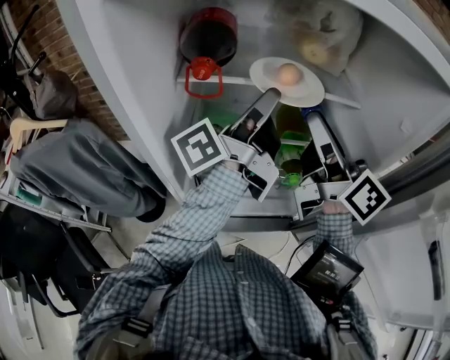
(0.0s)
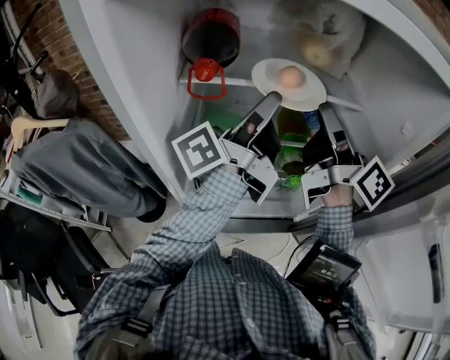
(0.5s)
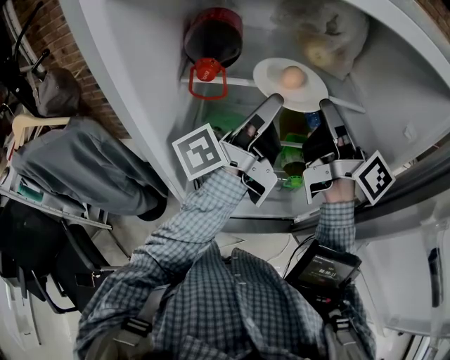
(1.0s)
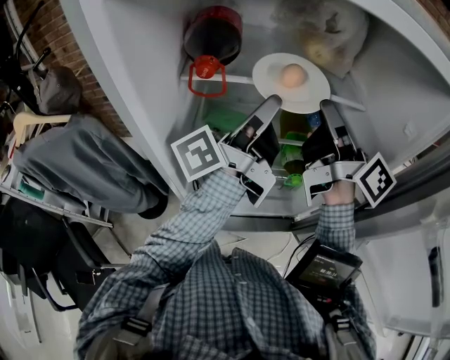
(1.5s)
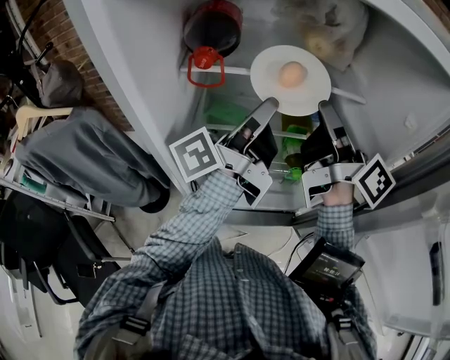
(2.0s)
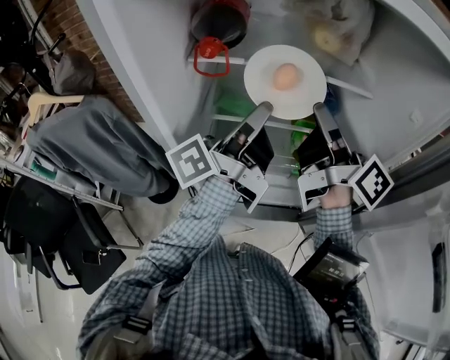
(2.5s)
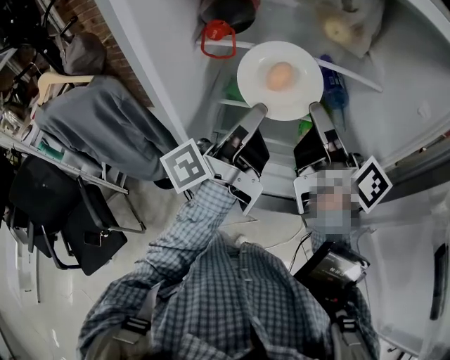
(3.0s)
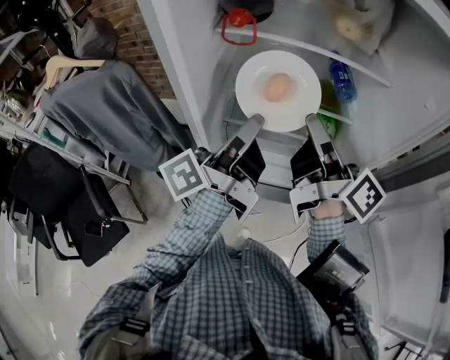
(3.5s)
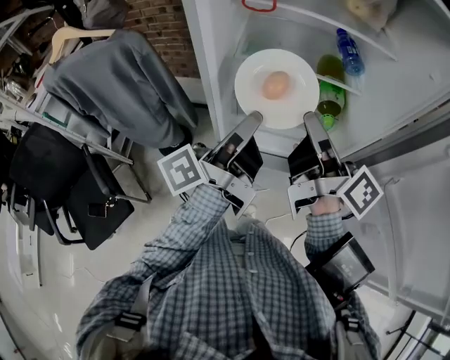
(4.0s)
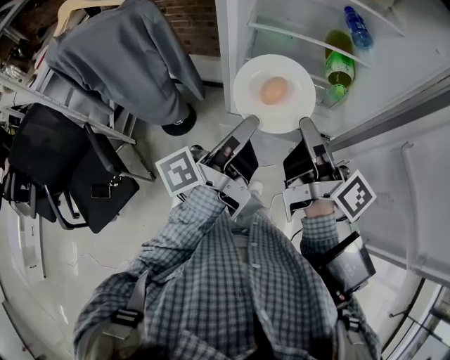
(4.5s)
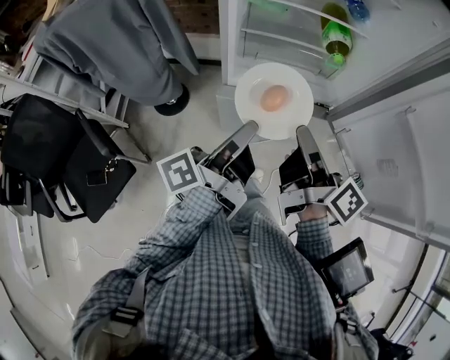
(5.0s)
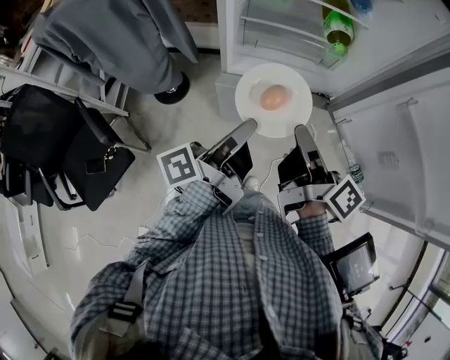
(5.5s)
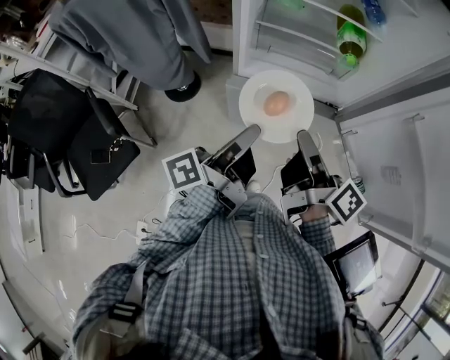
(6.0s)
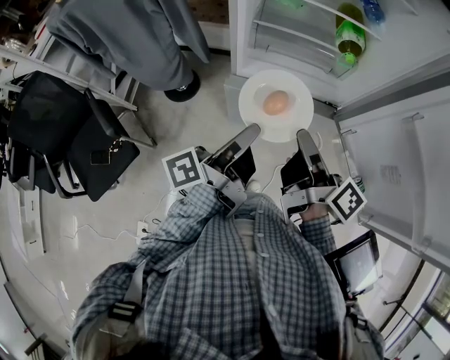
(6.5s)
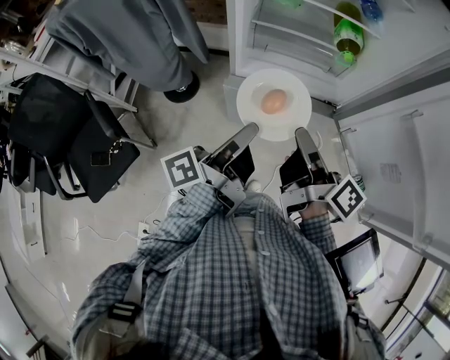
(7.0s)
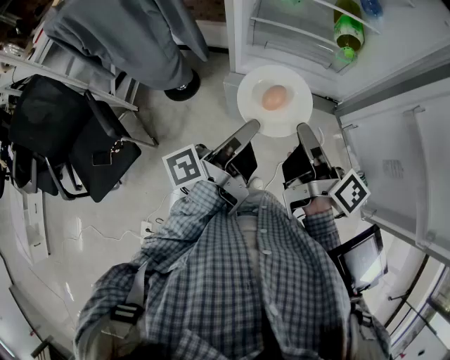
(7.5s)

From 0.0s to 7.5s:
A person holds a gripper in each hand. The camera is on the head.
From 0.0s to 2.0s: The right gripper turns by approximately 20 degrees.
From 2.0s to 4.0s: The two grippers go some 20 cm backward, downward and to the left.
From 4.0s to 5.5s: Both grippers travel together backward and downward, some 20 cm.
From 5.5s to 7.5s: The grippers make only small movements.

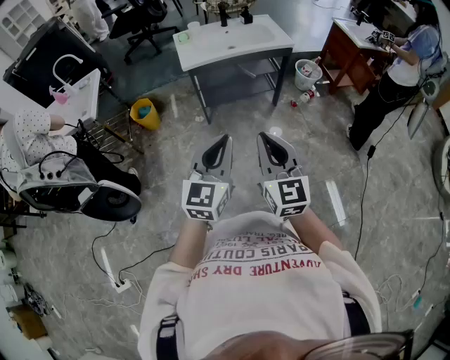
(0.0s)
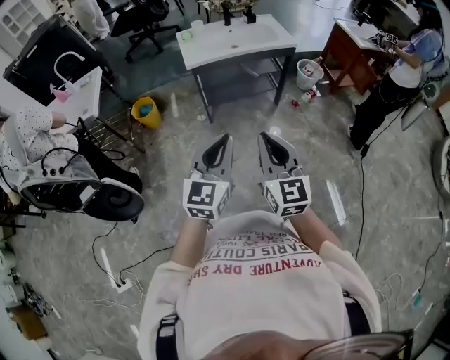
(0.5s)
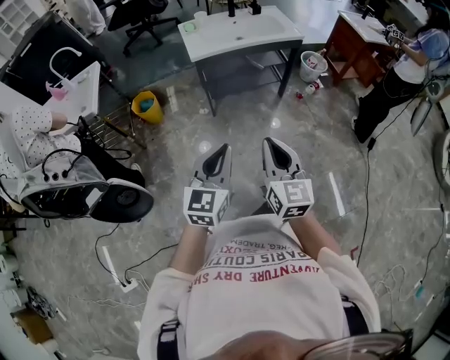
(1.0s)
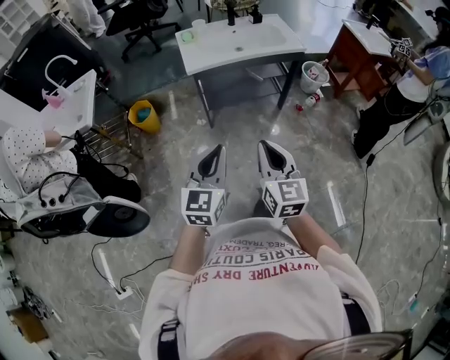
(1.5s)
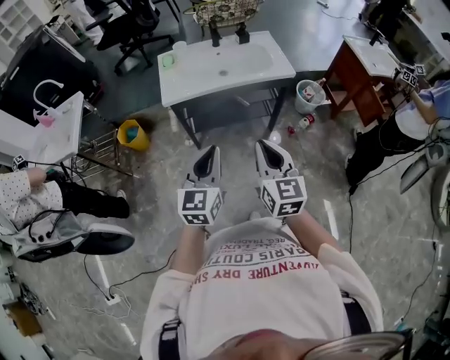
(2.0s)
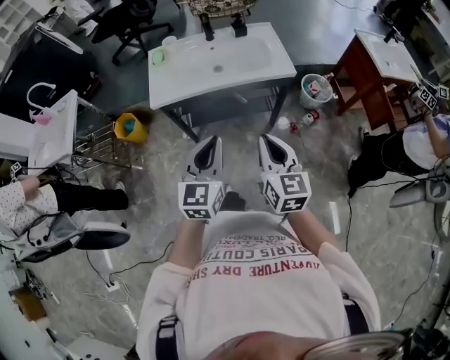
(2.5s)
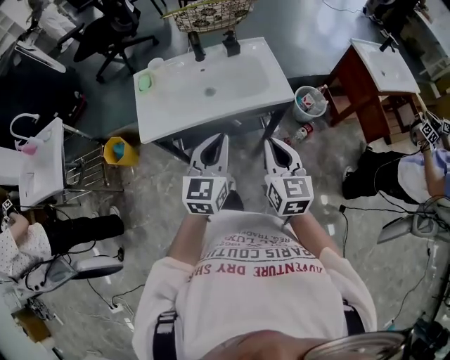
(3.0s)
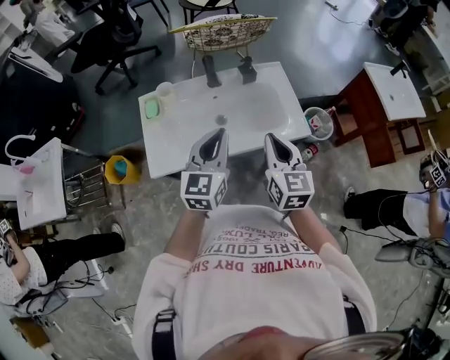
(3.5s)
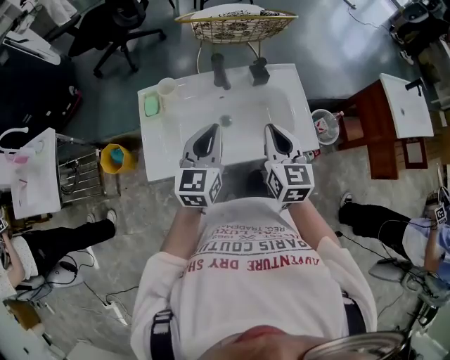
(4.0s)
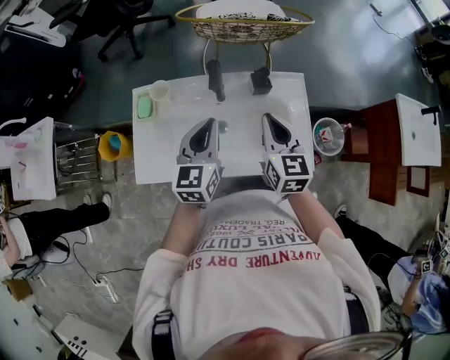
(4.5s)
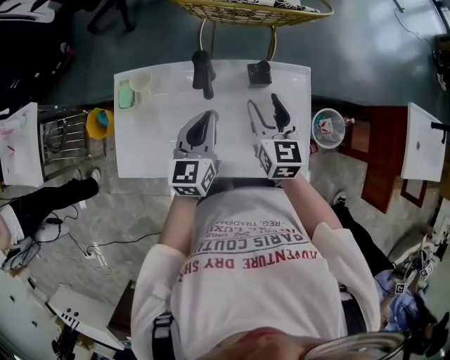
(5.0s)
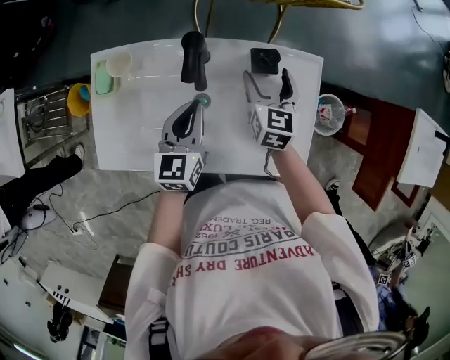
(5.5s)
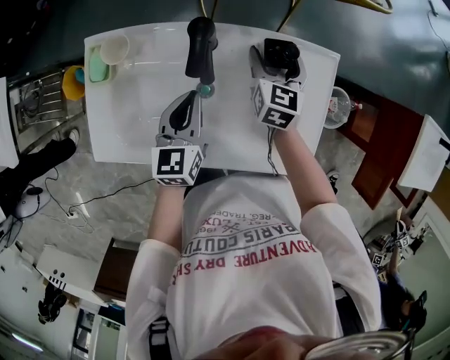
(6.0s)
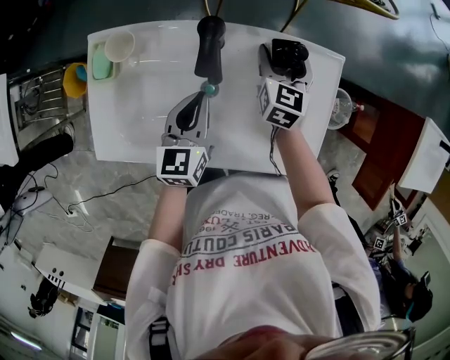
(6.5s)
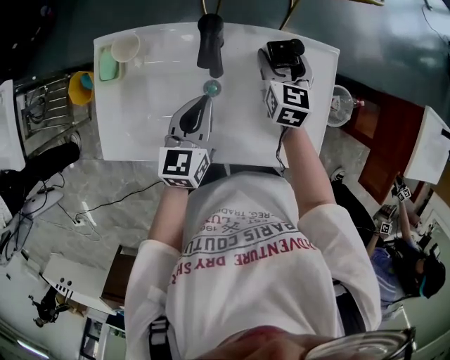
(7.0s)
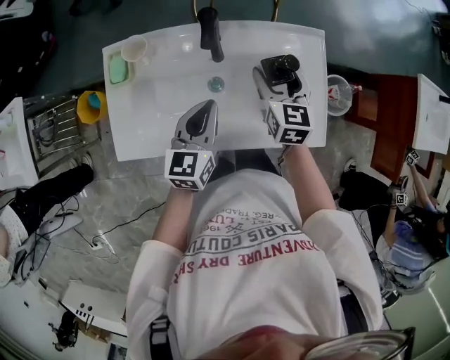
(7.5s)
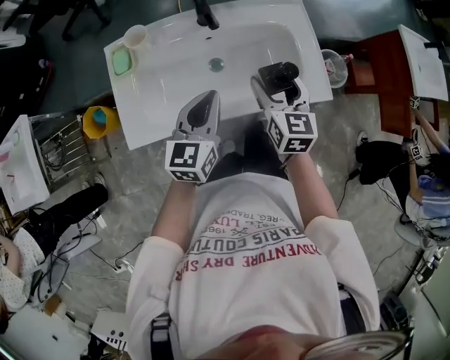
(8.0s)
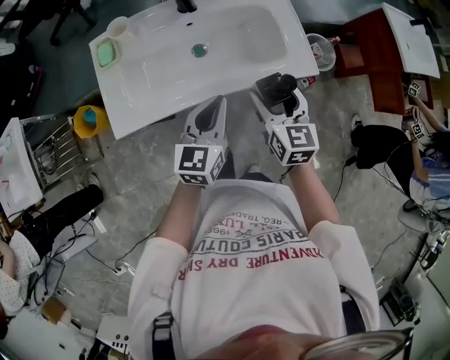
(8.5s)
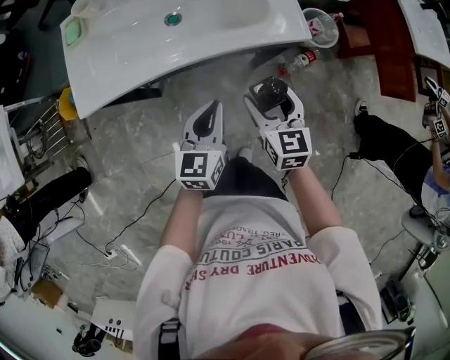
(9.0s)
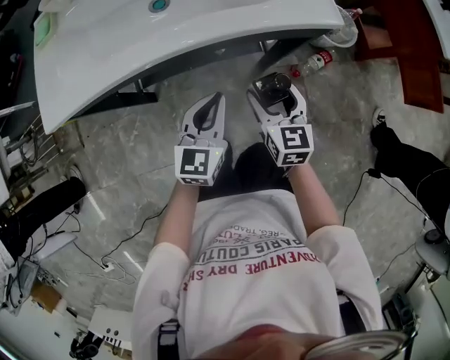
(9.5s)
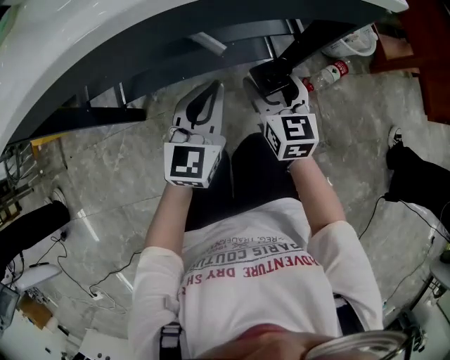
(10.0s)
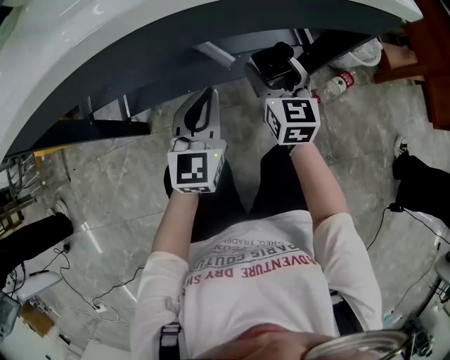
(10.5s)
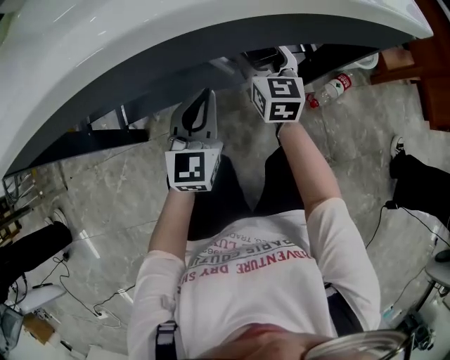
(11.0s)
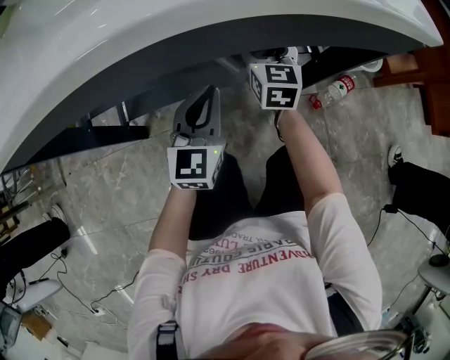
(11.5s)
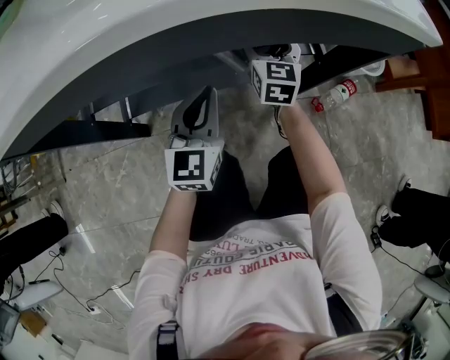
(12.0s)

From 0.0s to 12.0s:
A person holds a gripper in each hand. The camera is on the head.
From 0.0s to 2.0s: Both grippers travel together forward, approximately 25 cm.
From 2.0s to 4.0s: Both grippers are carried forward, about 50 cm.
From 4.0s to 6.0s: The left gripper shifts about 25 cm downward and forward, and rotates some 20 degrees; the right gripper is displaced forward and downward by about 40 cm, and opens up.
From 6.0s to 8.0s: The left gripper moves backward and upward, roughly 20 cm, and rotates approximately 30 degrees. Meanwhile the right gripper heads backward and upward, covering about 30 cm.
From 8.0s to 10.0s: The grippers both shift downward by about 40 cm.
From 10.0s to 12.0s: The left gripper shifts some 5 cm to the left; the right gripper heads forward, covering some 15 cm.

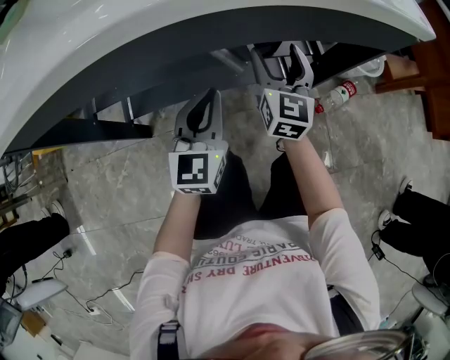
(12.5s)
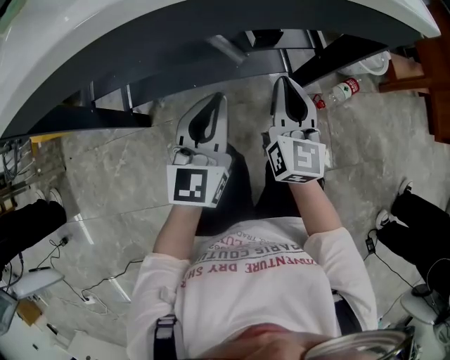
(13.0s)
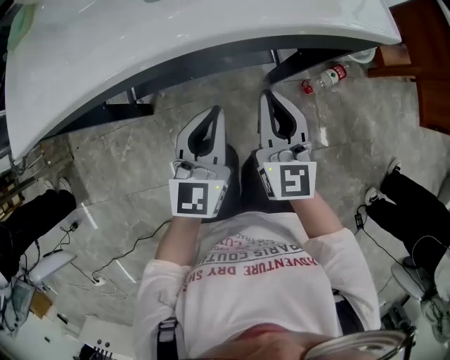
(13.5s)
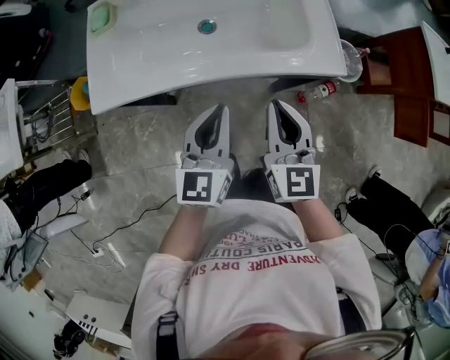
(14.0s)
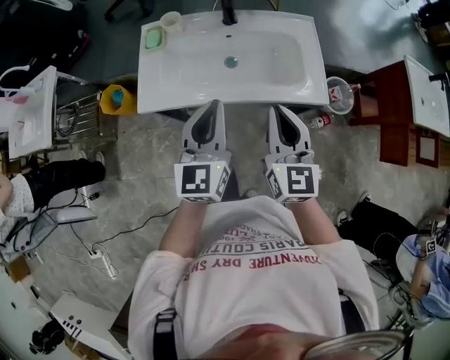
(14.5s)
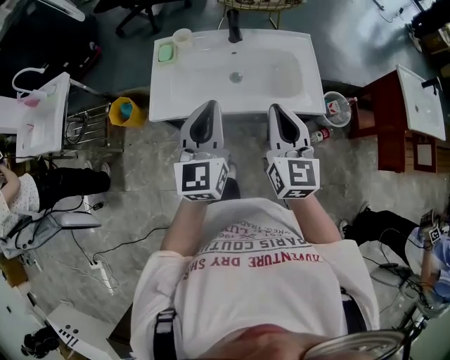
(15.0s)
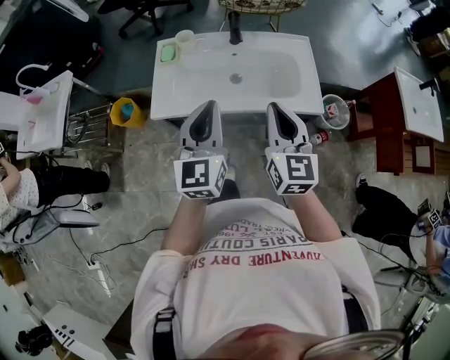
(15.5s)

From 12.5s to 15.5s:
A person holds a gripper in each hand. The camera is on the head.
From 12.5s to 14.0s: The right gripper travels upward and backward by approximately 35 cm, and closes up. Meanwhile the left gripper travels upward by roughly 35 cm.
From 14.0s to 15.5s: The grippers both shift upward by roughly 20 cm.

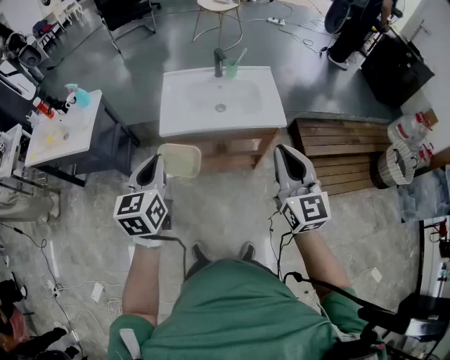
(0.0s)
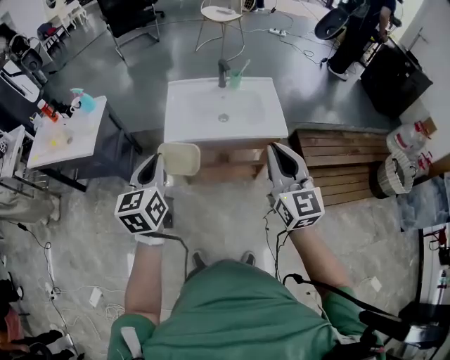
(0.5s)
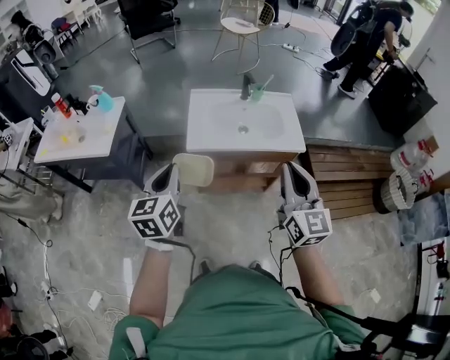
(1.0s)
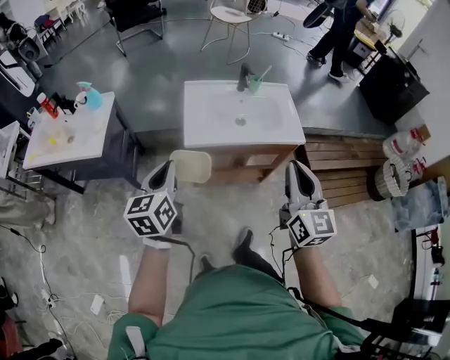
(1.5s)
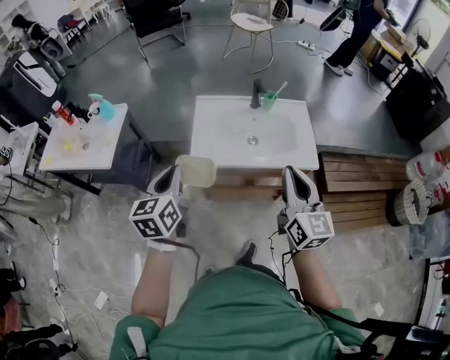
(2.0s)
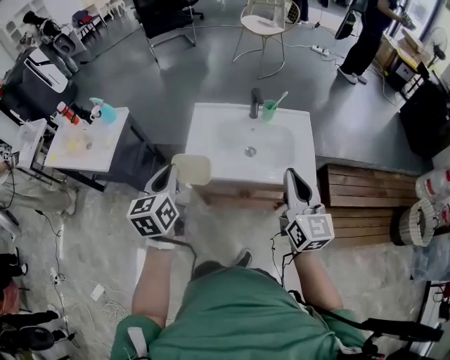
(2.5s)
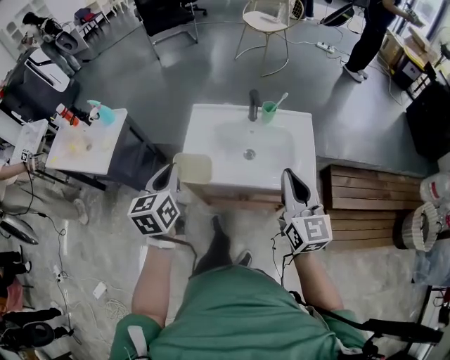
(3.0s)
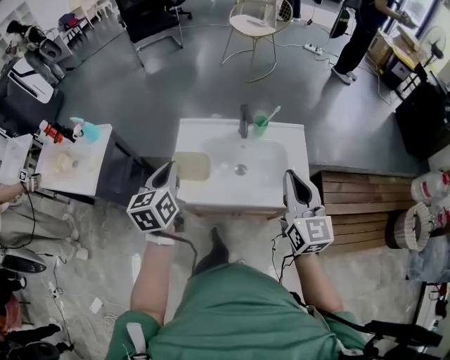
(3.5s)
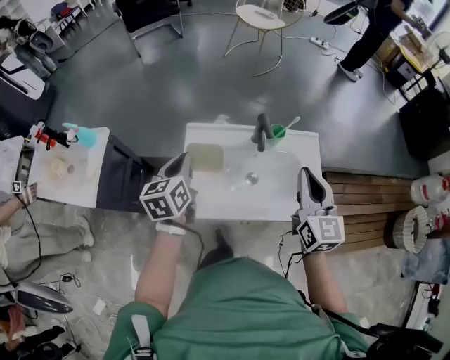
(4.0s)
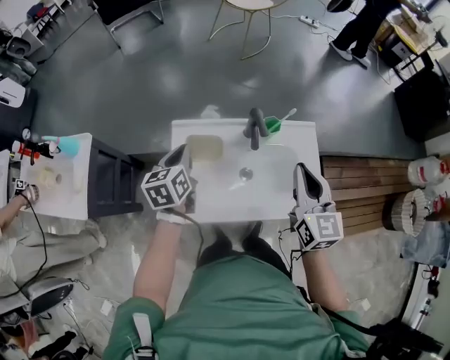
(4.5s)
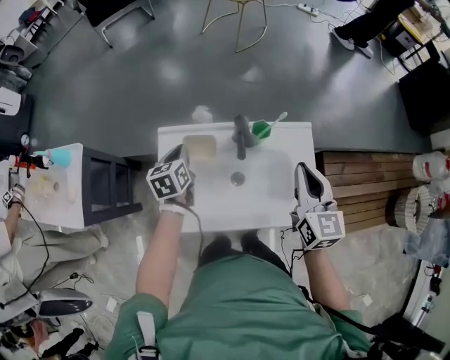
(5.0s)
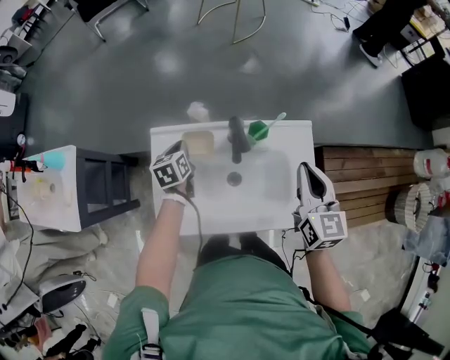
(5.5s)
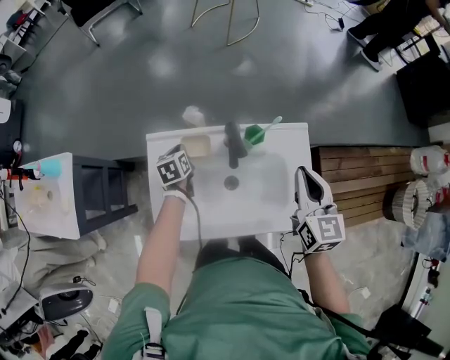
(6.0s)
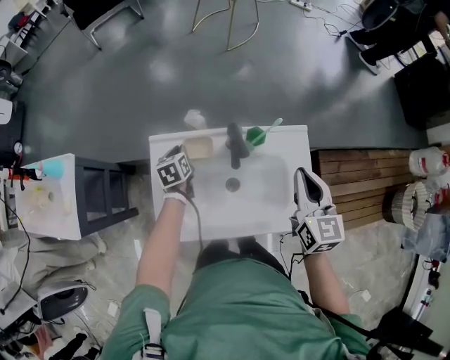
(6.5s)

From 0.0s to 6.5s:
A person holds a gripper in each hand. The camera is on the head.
From 0.0s to 2.0s: Both grippers travel together forward and to the left, approximately 15 cm.
From 2.0s to 4.5s: The grippers both shift forward by approximately 40 cm.
From 4.5s to 6.5s: The left gripper goes about 20 cm downward and forward; the right gripper heads to the right, forward and downward, covering some 15 cm.
